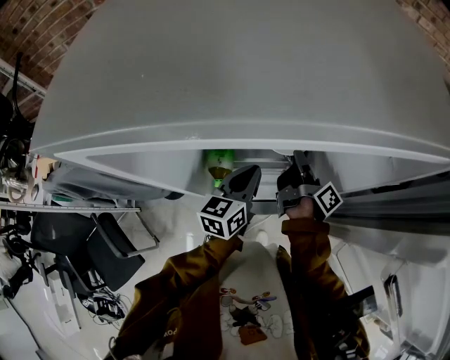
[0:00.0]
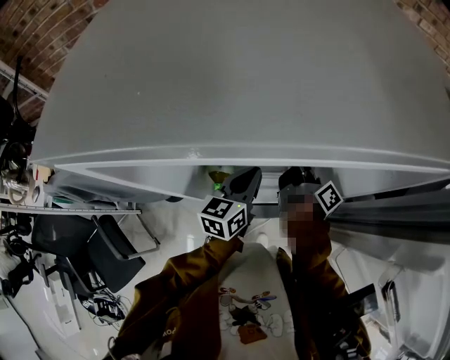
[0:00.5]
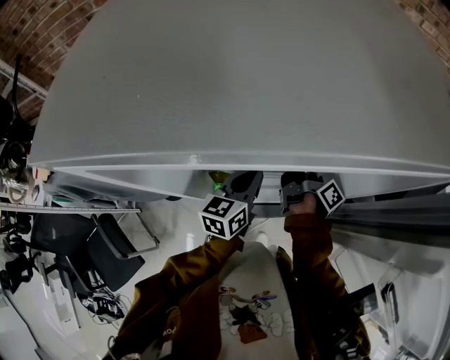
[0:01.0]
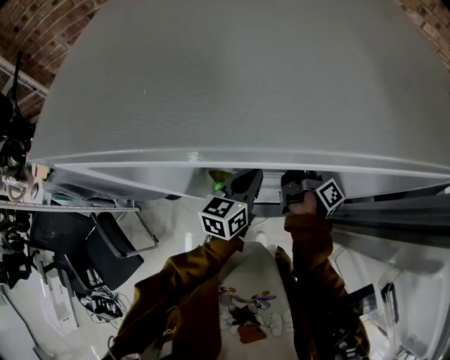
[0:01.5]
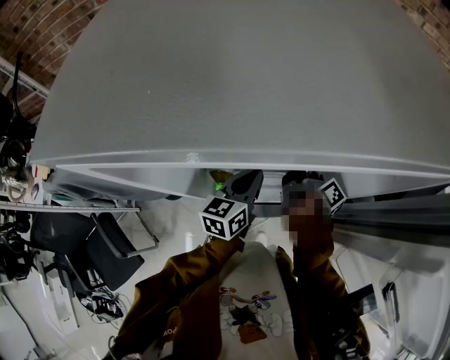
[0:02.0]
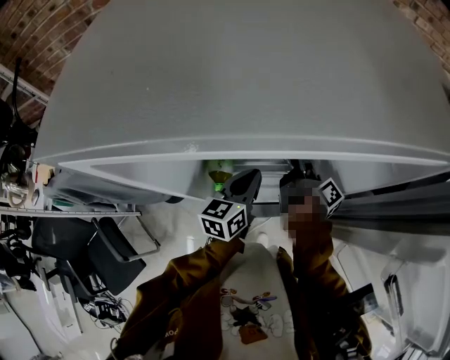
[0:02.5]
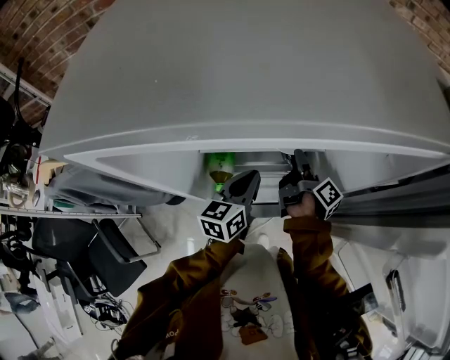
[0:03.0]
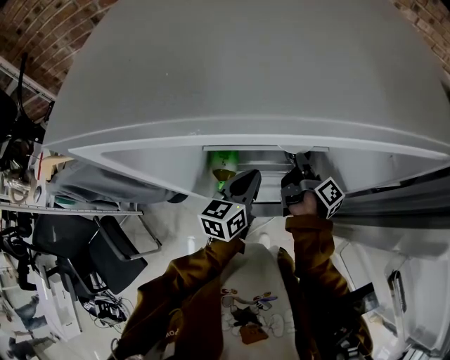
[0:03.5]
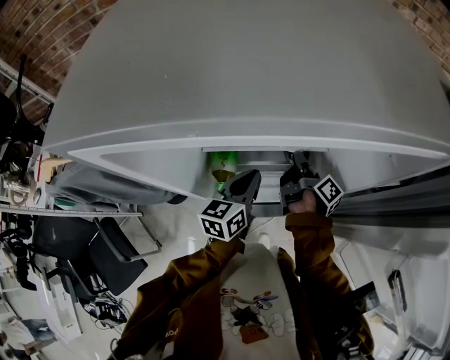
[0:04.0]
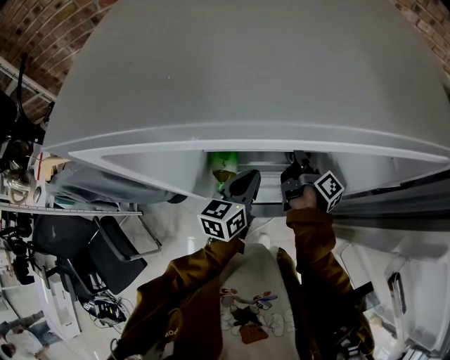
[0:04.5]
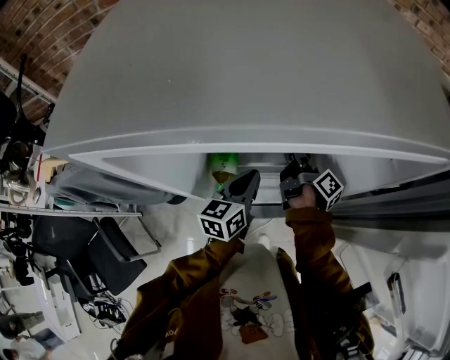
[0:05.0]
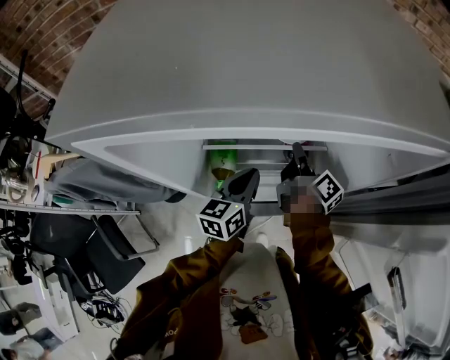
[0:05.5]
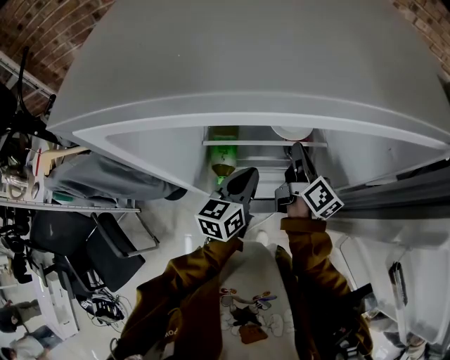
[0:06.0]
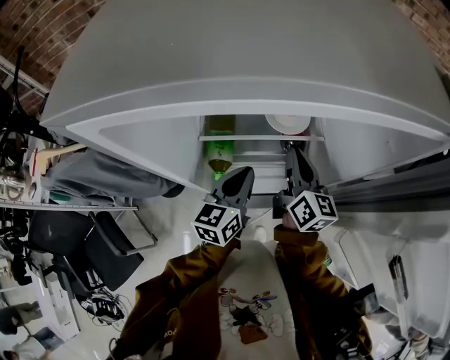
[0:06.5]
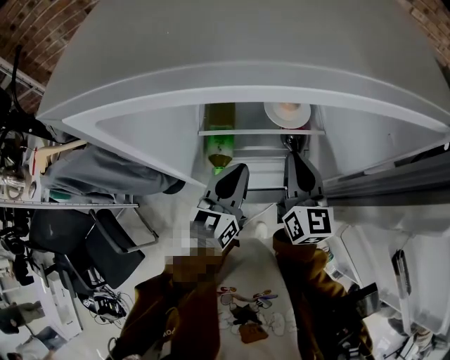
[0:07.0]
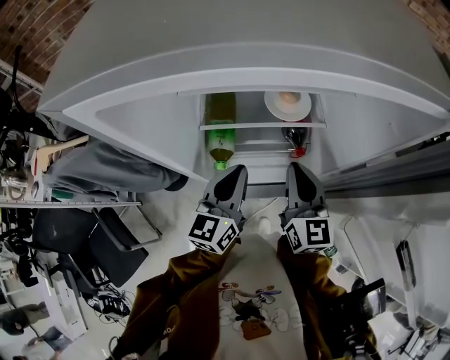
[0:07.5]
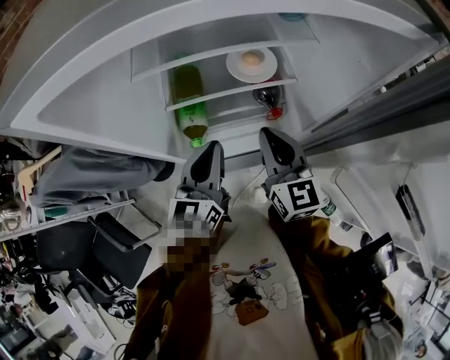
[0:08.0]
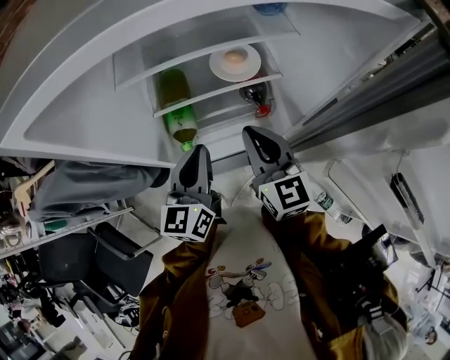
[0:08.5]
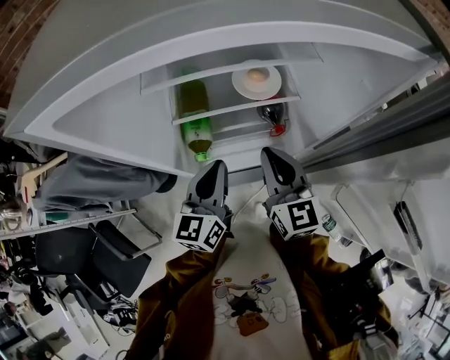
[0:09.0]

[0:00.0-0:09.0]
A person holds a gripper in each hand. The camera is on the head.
0:04.5 to 0:07.0: The left gripper moves about 5 cm.

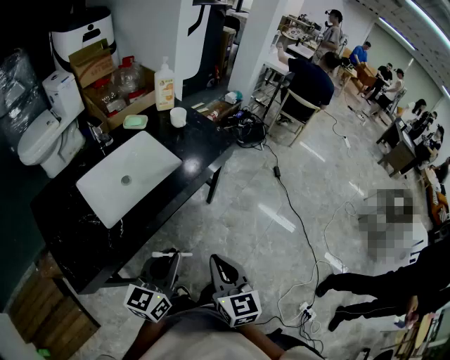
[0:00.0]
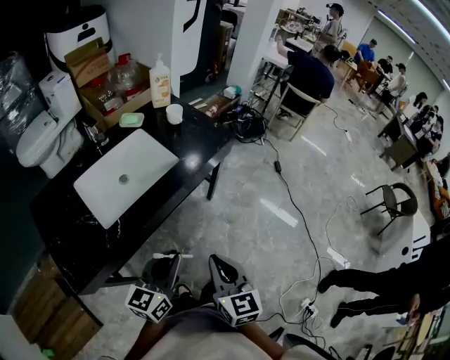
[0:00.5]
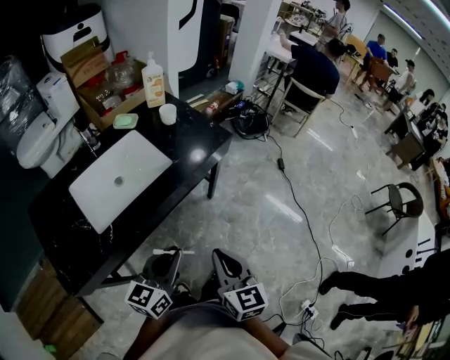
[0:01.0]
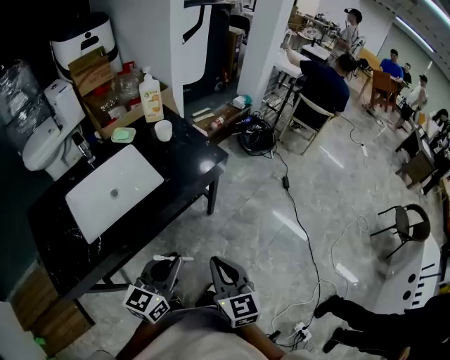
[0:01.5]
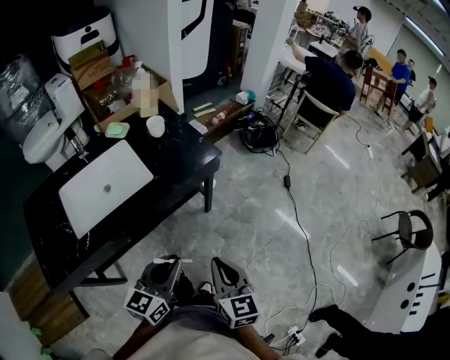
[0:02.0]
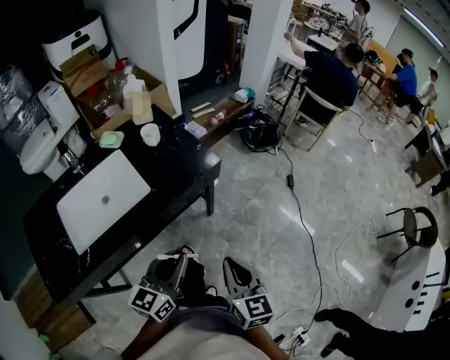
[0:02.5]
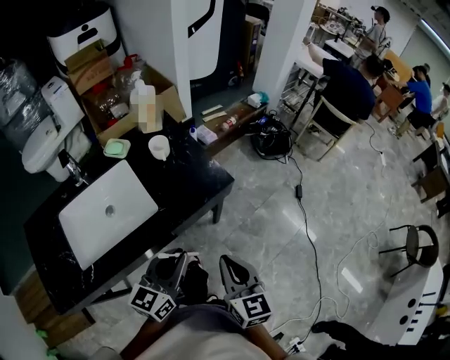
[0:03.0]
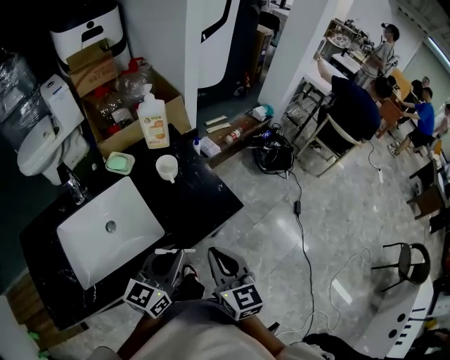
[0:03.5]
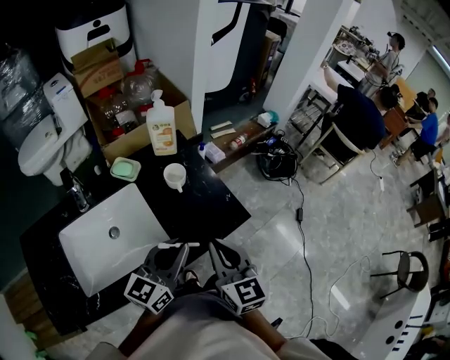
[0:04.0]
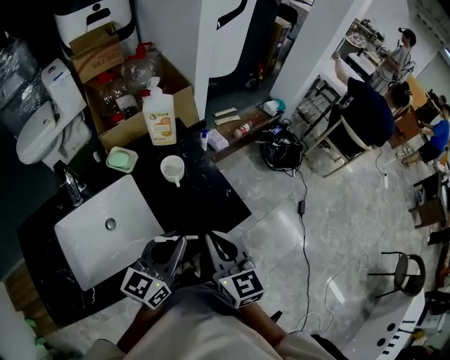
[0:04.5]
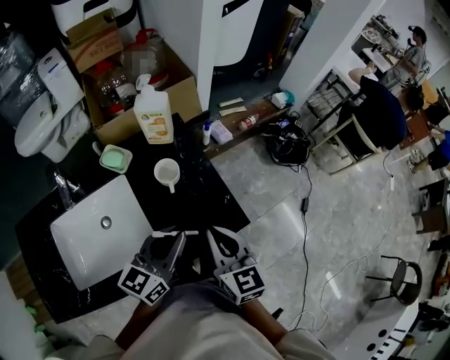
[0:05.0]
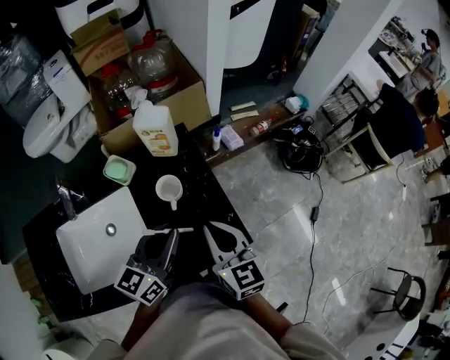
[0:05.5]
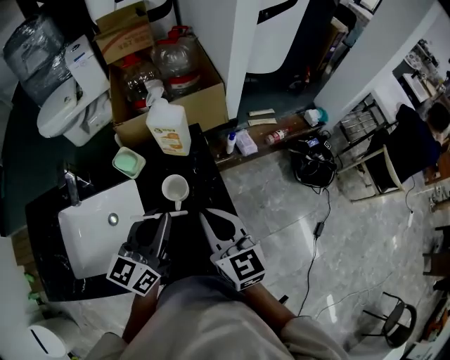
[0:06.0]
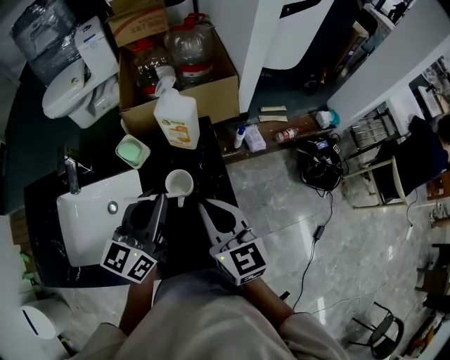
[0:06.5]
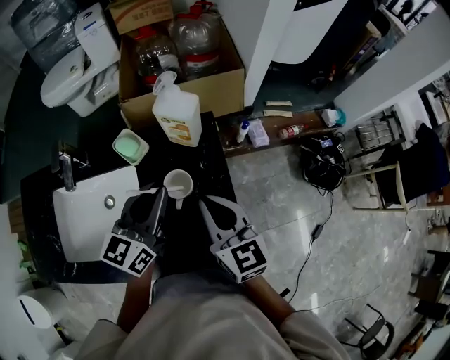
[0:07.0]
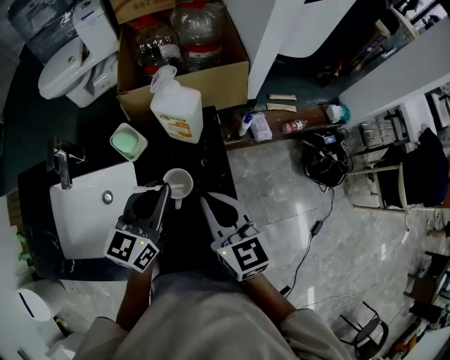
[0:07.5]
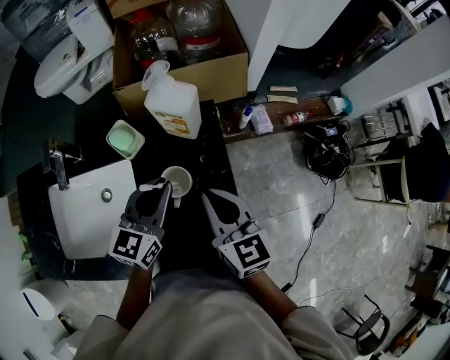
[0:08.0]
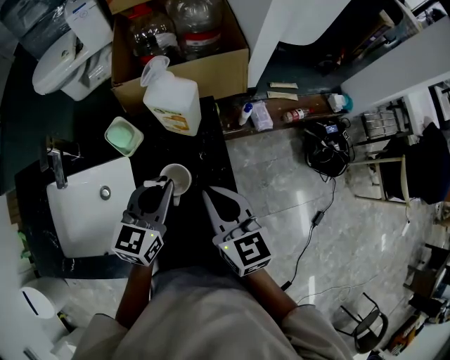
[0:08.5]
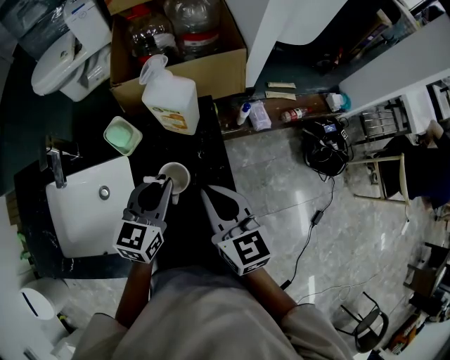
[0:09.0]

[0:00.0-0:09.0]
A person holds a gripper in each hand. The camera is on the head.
0:00.0 to 0:02.0: The grippers both shift to the right and forward by approximately 20 cm.
0:02.0 to 0:04.5: Both grippers travel together forward, roughly 35 cm.
0:04.5 to 0:07.0: The right gripper moves roughly 20 cm, and changes its angle by roughly 30 degrees, while the left gripper shifts by approximately 20 cm, and swivels about 30 degrees.
0:07.0 to 0:09.0: The left gripper shifts approximately 10 cm downward.

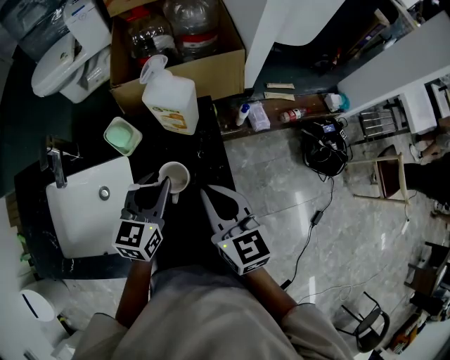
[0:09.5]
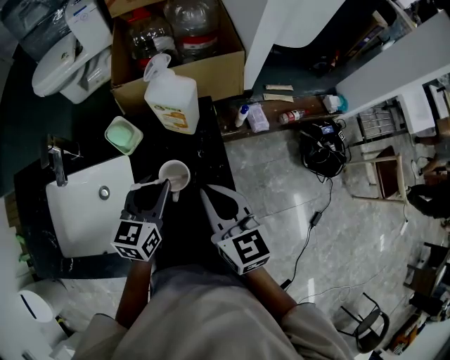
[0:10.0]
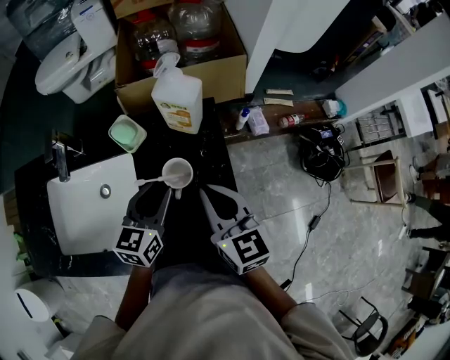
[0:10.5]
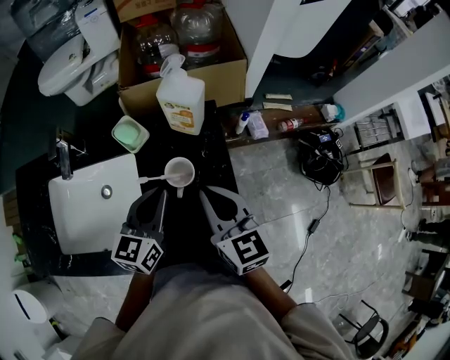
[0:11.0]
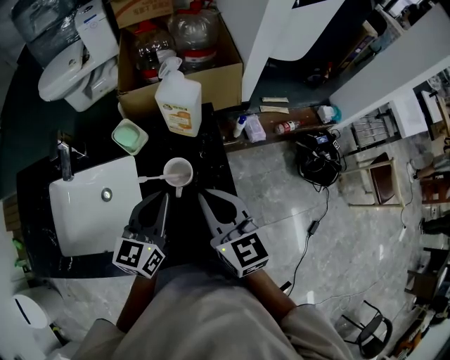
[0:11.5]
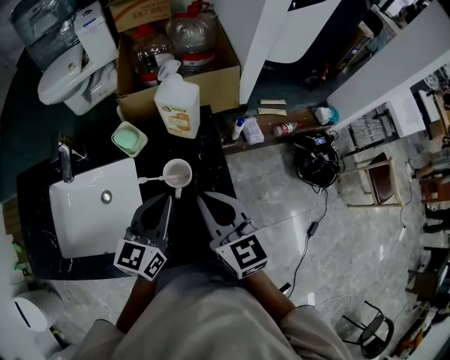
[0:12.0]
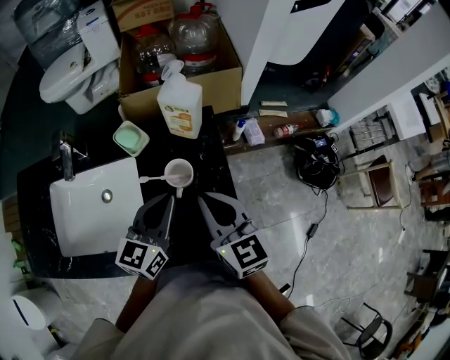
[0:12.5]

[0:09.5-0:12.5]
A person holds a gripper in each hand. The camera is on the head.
0:09.5 to 0:11.0: The left gripper moves some 5 cm.
0:11.0 to 0:12.5: The grippers stay close to where they were, moving slightly.

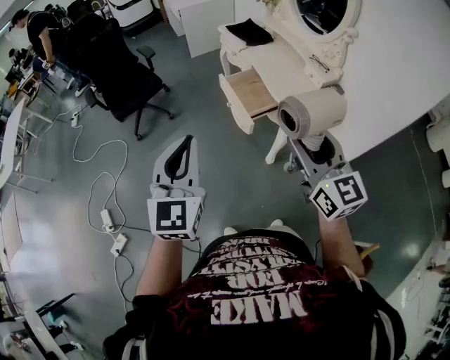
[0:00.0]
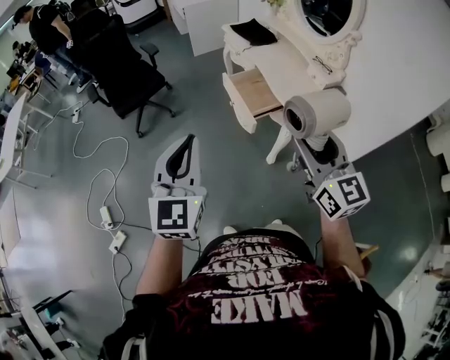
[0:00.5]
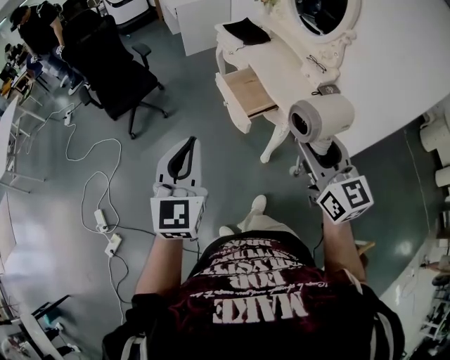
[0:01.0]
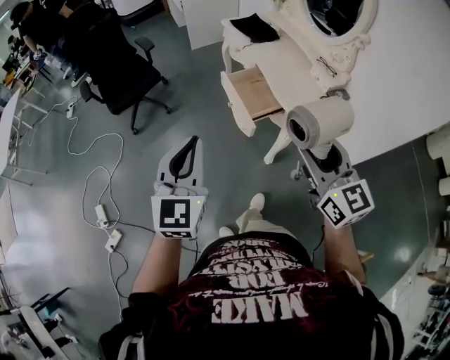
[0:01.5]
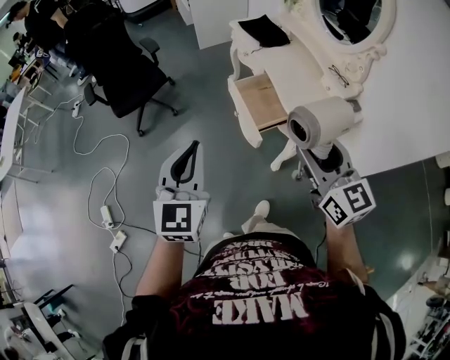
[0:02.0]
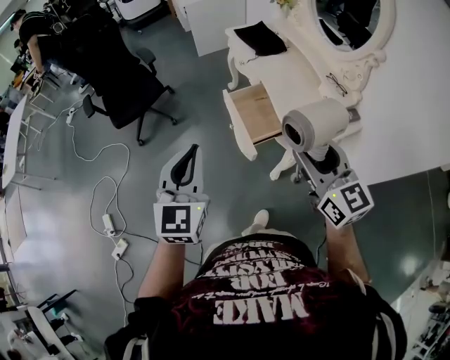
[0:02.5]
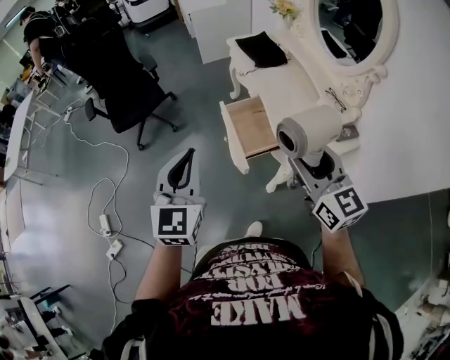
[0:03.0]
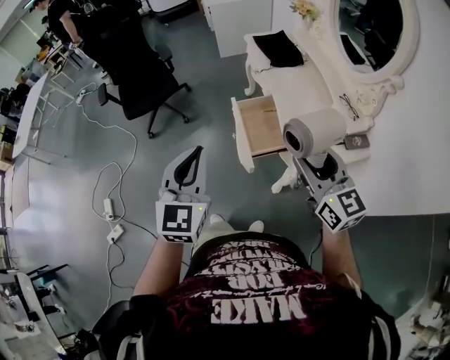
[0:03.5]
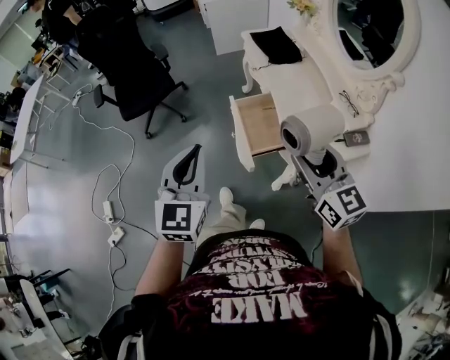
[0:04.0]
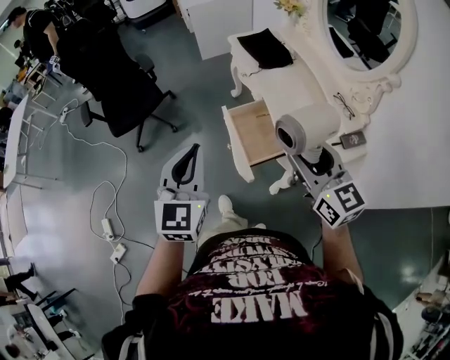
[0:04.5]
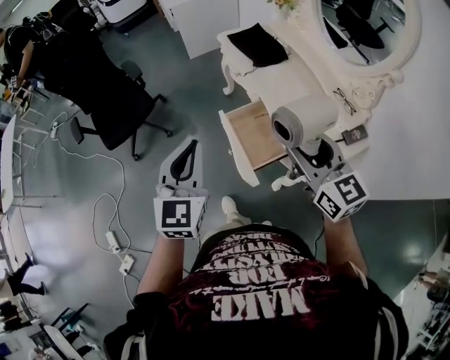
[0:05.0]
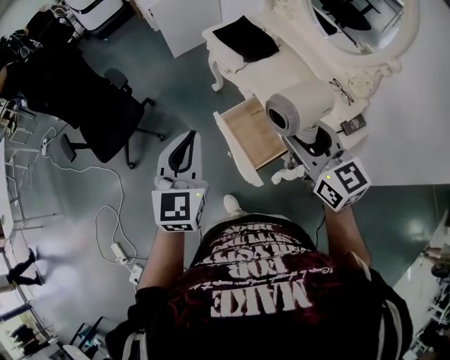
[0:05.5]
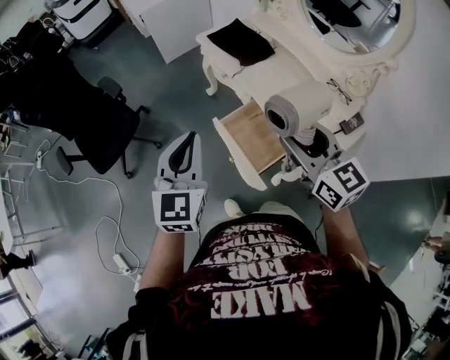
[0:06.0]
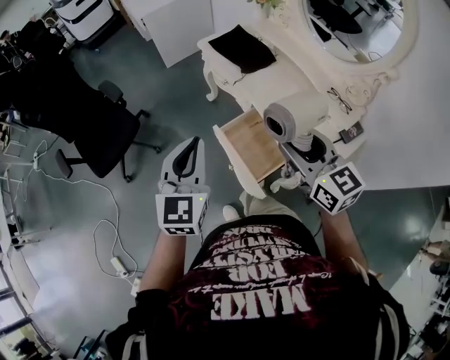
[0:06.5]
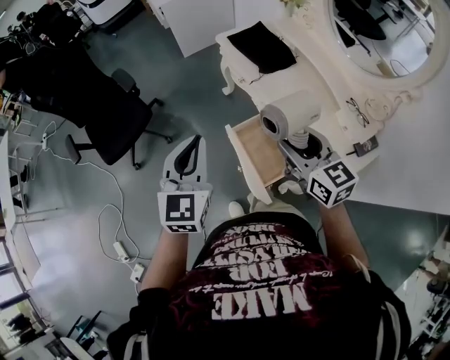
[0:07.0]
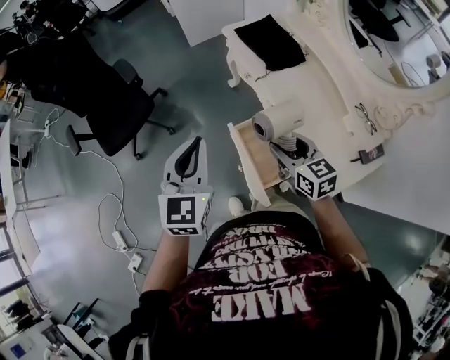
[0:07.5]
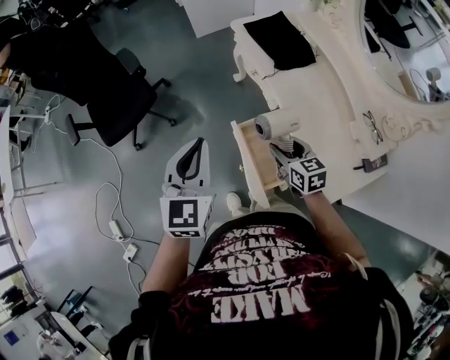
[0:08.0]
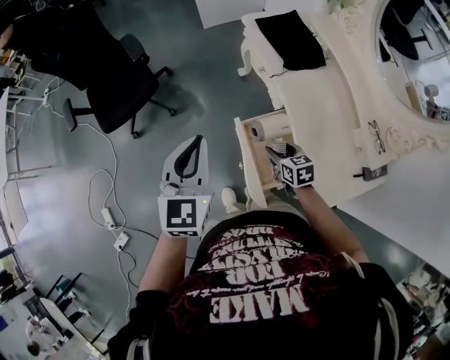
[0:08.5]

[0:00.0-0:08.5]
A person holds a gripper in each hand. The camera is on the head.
0:00.0 to 0:02.0: Both grippers move forward, about 10 cm.
0:02.0 to 0:04.0: The left gripper is displaced to the right and forward by some 15 cm. Meanwhile the right gripper travels forward and to the right by some 15 cm.
0:04.0 to 0:06.5: Both grippers travel together forward, some 20 cm.
0:06.5 to 0:08.5: The right gripper goes about 35 cm downward, and points its fingers roughly 30 degrees further downward, while the left gripper is displaced forward and downward by roughly 10 cm.
